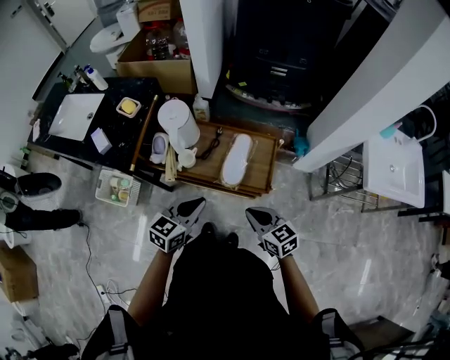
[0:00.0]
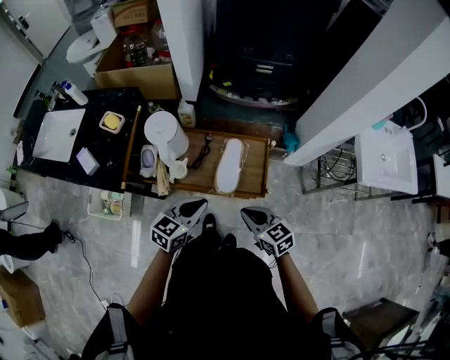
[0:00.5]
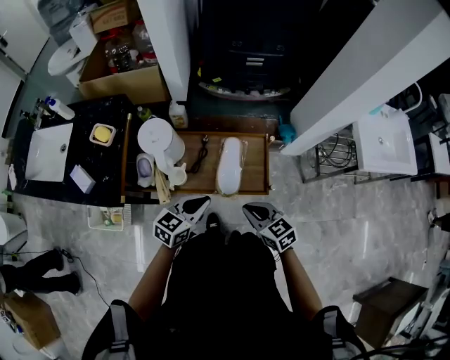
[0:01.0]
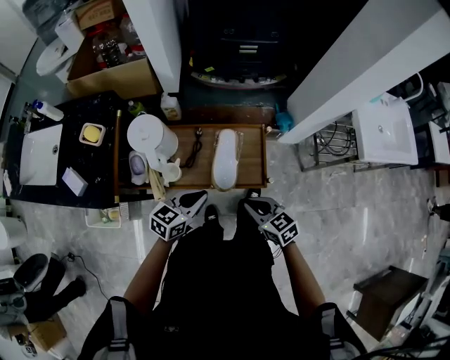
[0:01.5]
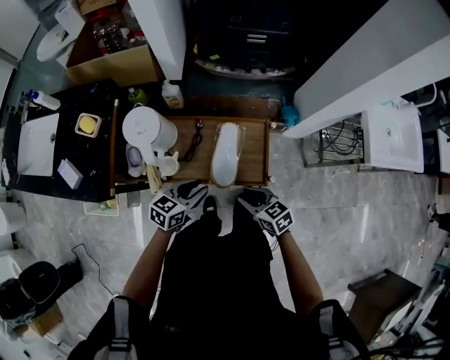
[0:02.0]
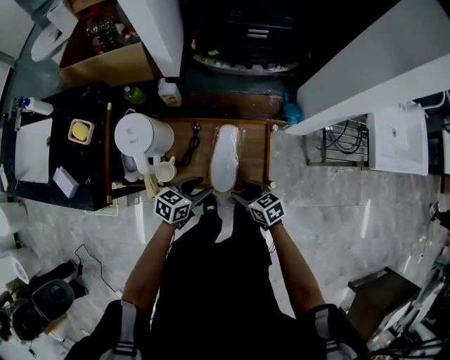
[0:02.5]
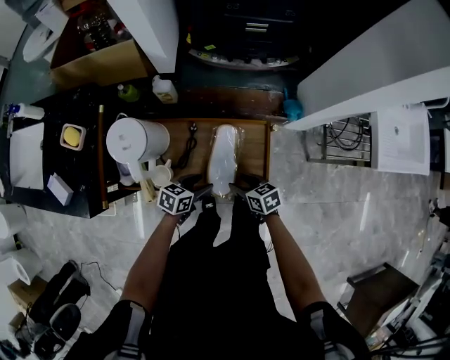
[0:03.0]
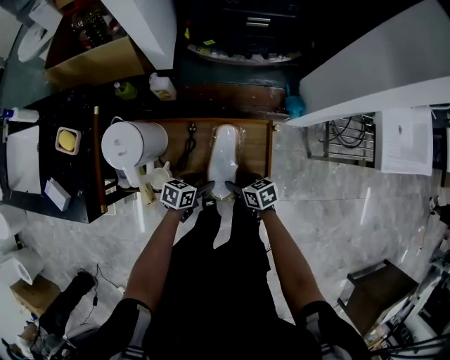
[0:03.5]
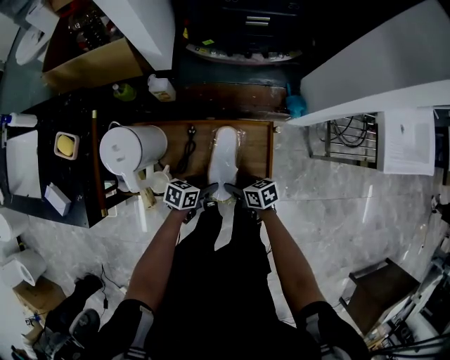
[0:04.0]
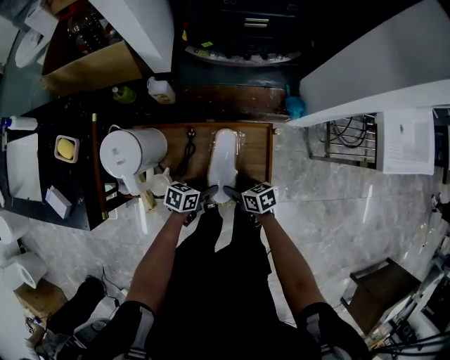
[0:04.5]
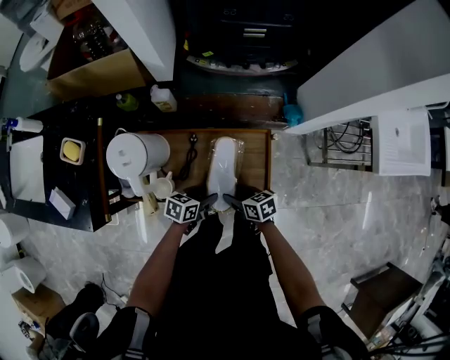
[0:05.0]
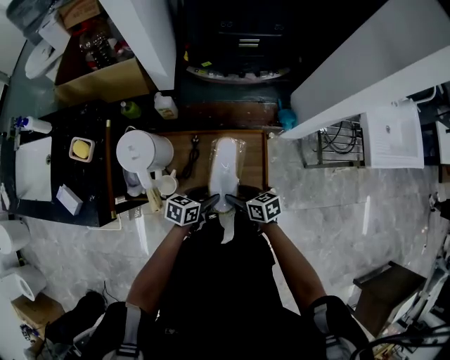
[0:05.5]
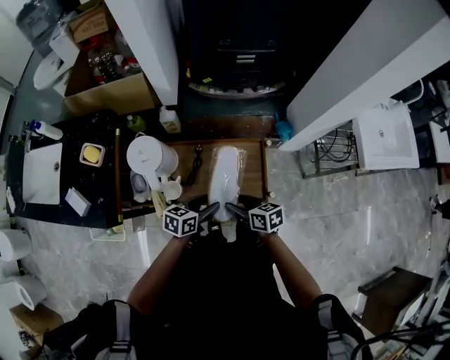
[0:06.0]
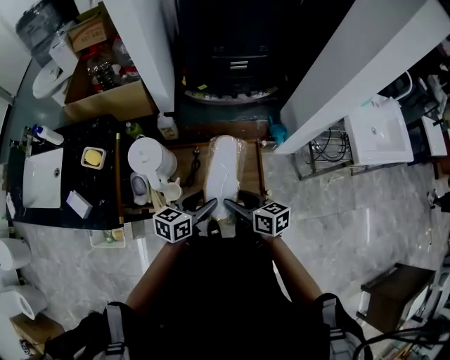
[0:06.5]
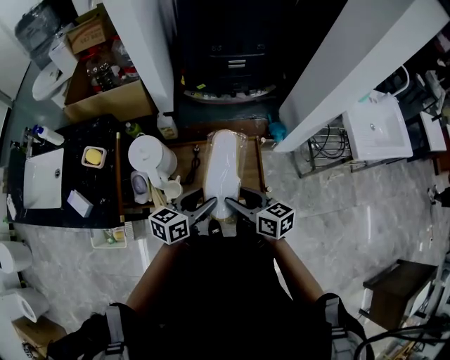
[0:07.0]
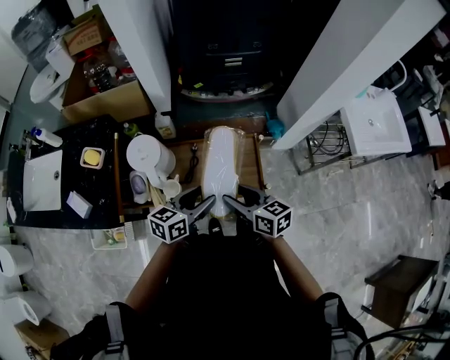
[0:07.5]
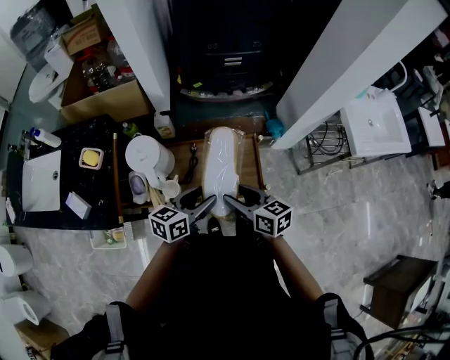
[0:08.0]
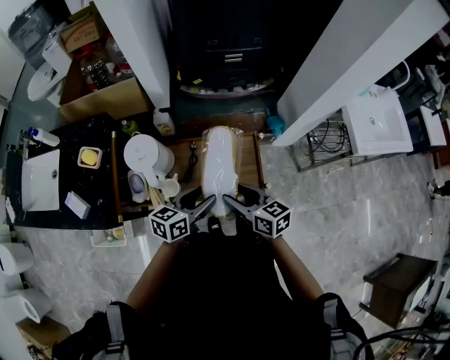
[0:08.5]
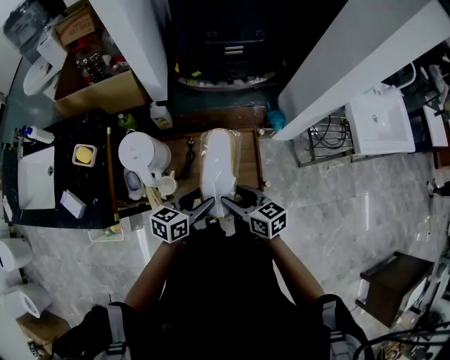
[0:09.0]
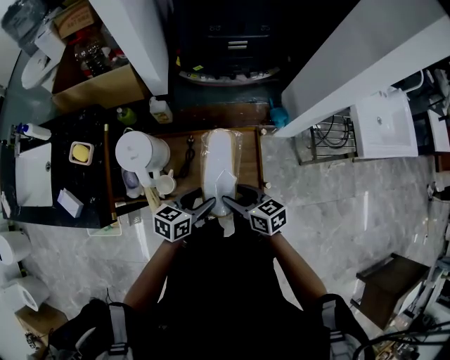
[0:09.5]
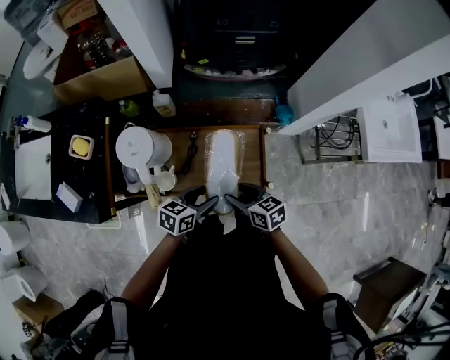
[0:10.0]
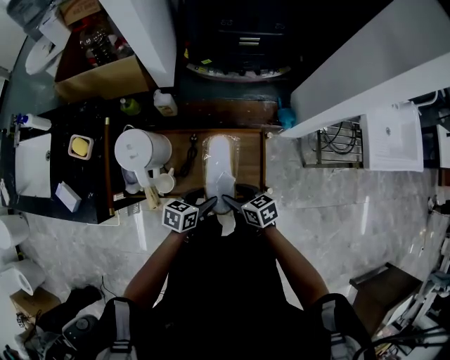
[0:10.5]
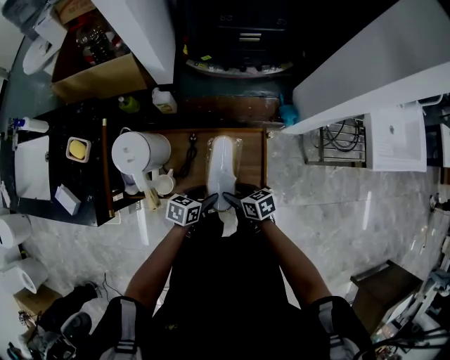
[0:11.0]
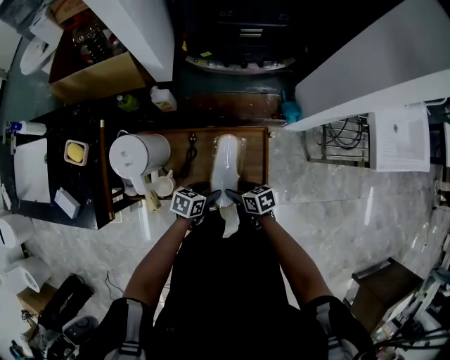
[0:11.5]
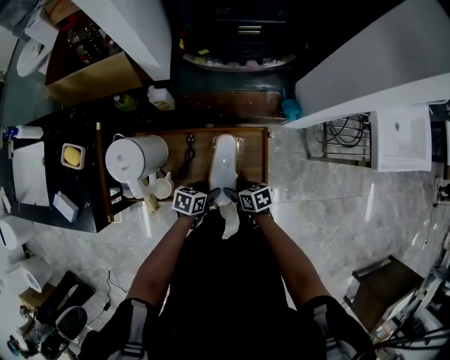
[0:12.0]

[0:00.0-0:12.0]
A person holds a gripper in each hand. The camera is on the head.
0:00.0 to 0:02.0: The grippers both shift downward and forward by roughly 15 cm. The left gripper opens its fingers, while the right gripper opens.
0:02.0 to 0:04.0: The grippers both shift downward by approximately 15 cm. The left gripper swivels some 30 degrees, and opens up, while the right gripper rotates approximately 30 degrees, and opens.
0:04.0 to 0:06.0: The two grippers go roughly 15 cm upward.
0:06.0 to 0:08.0: The grippers both shift upward by about 10 cm.
0:08.0 to 0:10.0: The two grippers go approximately 10 cm downward.
0:10.0 to 0:12.0: The two grippers go some 15 cm downward.

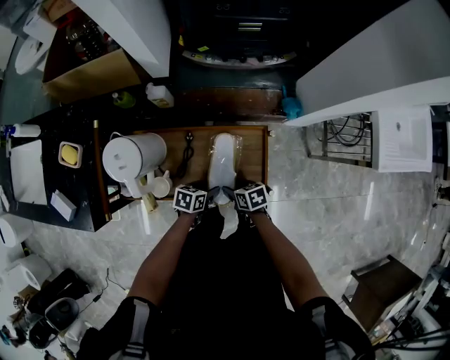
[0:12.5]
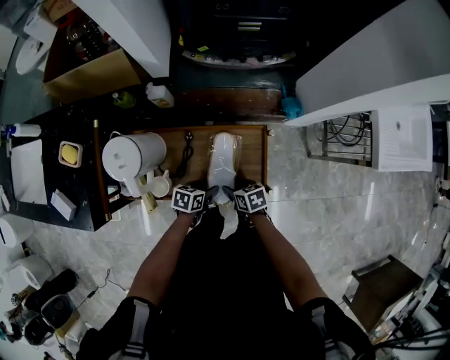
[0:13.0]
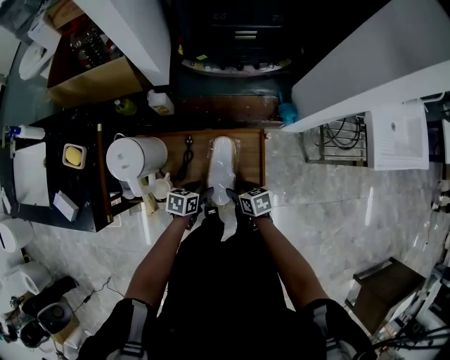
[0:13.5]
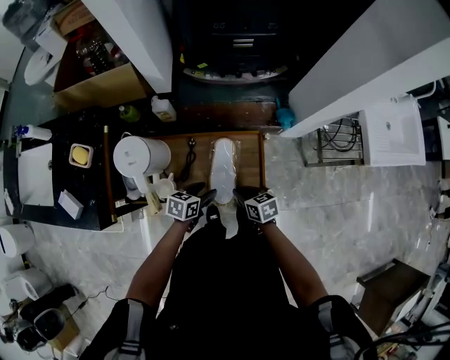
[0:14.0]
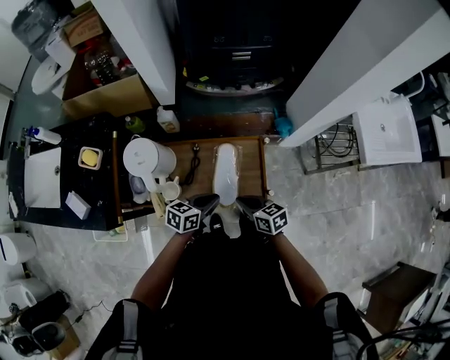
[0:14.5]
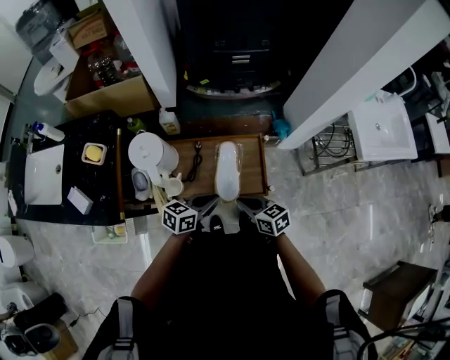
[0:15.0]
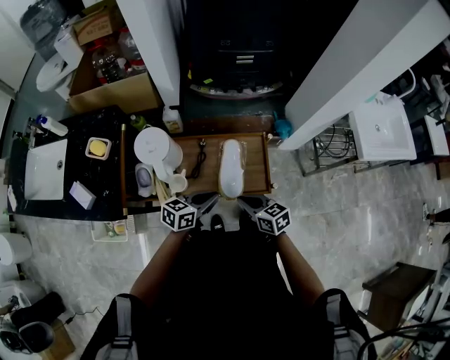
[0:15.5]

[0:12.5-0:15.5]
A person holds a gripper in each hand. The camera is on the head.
0:12.5 to 0:14.0: The grippers both shift upward by some 5 cm. The right gripper closes.
0:14.0 to 0:15.5: Both grippers travel together upward and backward, roughly 15 cm. The left gripper swivels some 20 degrees, and closes.

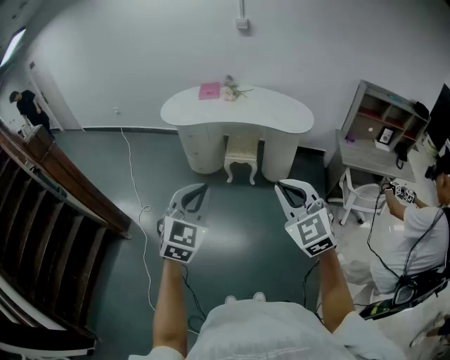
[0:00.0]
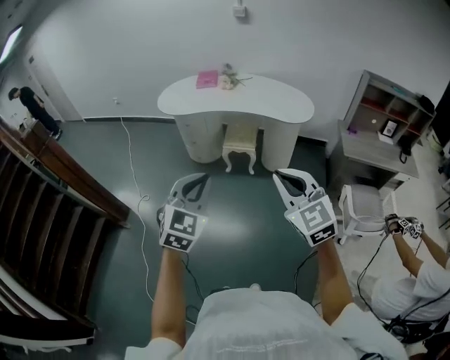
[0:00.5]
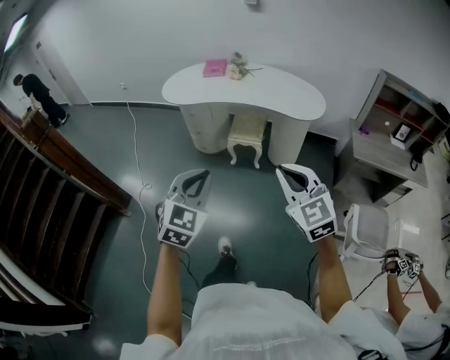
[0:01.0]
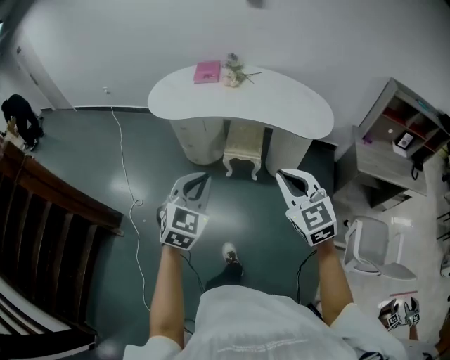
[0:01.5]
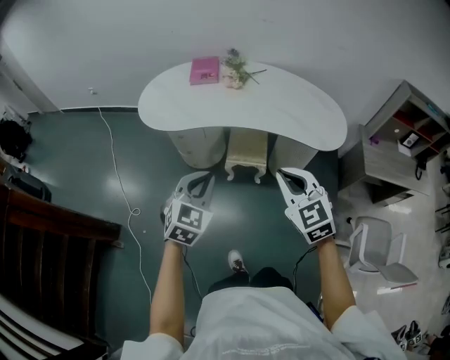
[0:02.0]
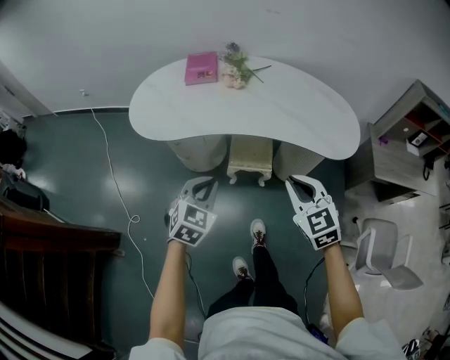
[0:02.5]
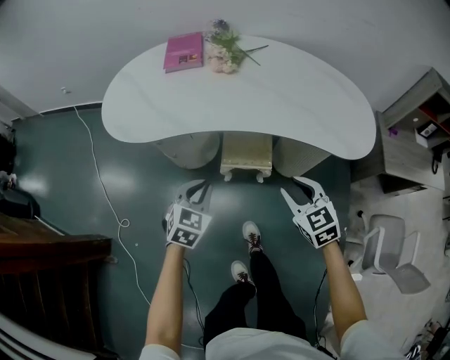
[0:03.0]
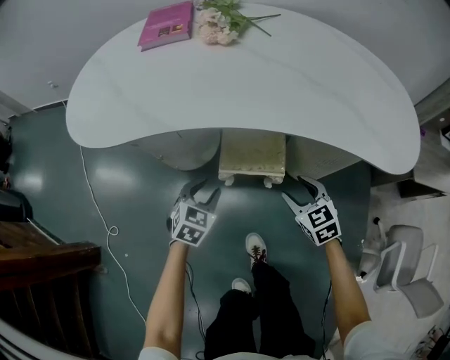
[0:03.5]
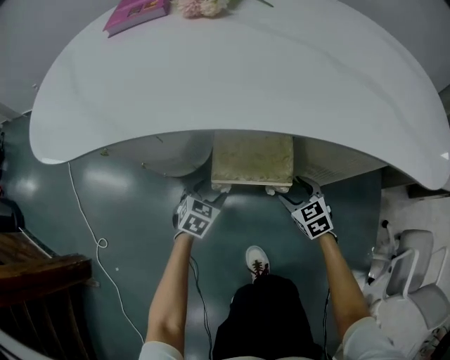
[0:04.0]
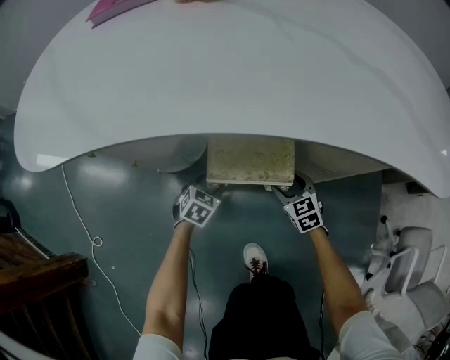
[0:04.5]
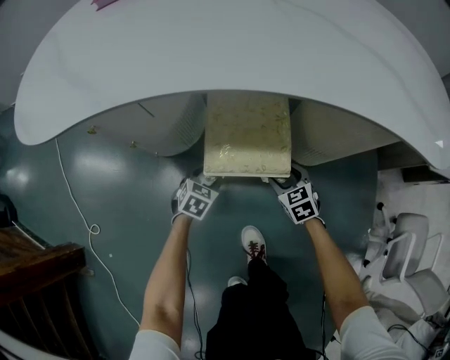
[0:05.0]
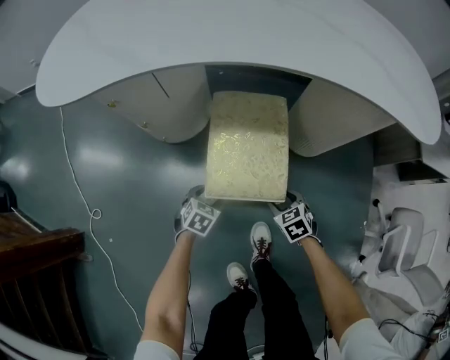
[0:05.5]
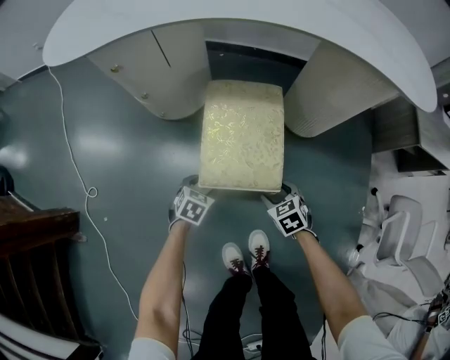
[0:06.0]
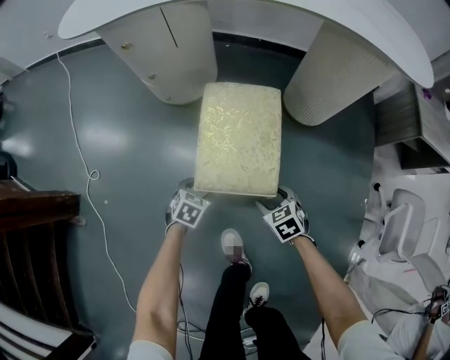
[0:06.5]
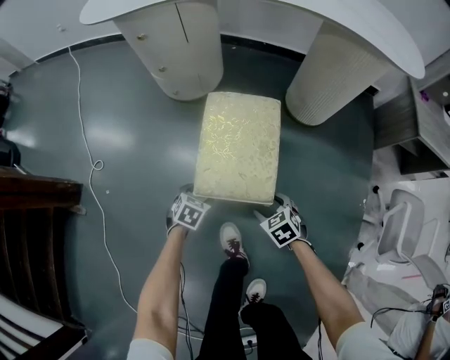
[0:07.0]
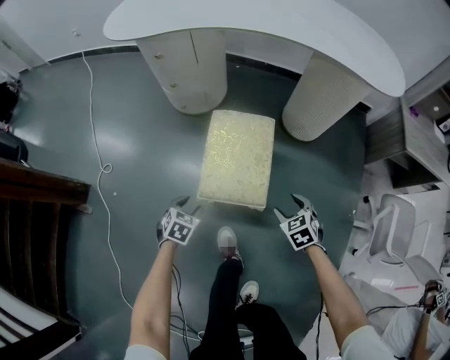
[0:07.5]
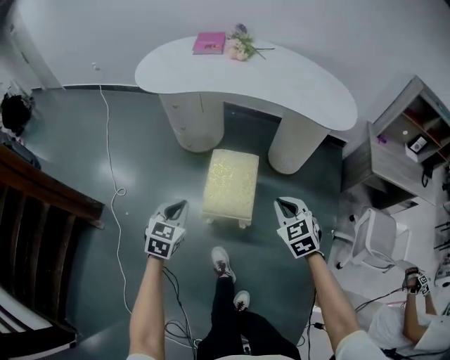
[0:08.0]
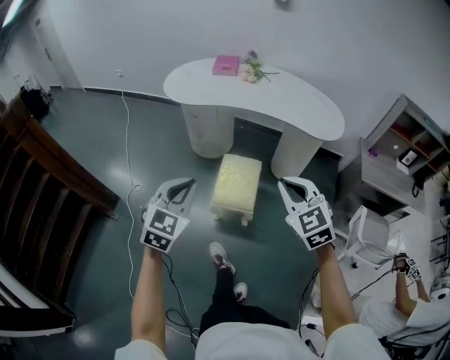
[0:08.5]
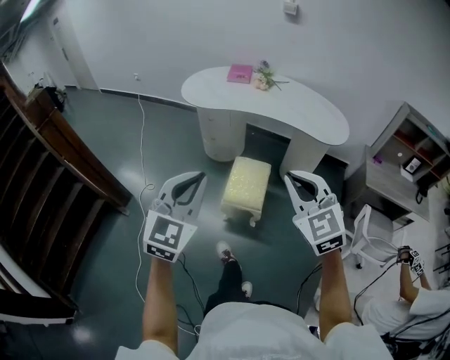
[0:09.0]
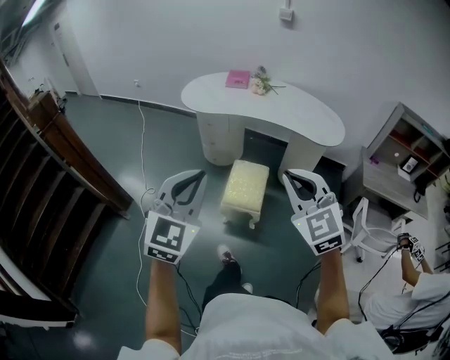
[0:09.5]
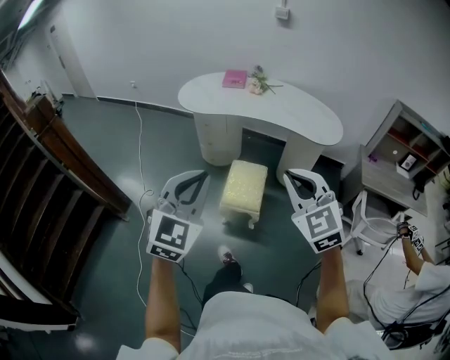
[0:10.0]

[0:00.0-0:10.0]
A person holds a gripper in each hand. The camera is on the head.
0:00.0 to 0:02.0: The pair of grippers is taken forward, about 40 cm.
0:02.0 to 0:04.0: The grippers both shift downward and forward by about 70 cm. The left gripper changes its angle by approximately 30 degrees, and opens; the right gripper turns by about 30 degrees, and opens its fingers.
0:04.0 to 0:06.0: The grippers both shift backward by some 25 cm.
0:06.0 to 0:08.0: The right gripper shifts about 40 cm upward, turns by some 30 degrees, and closes up; the left gripper shifts approximately 50 cm upward and backward, swivels roughly 30 degrees, and closes.
0:08.0 to 0:10.0: The two grippers go roughly 40 cm upward and backward. The right gripper changes its angle by about 30 degrees, while the left gripper swivels approximately 30 degrees.

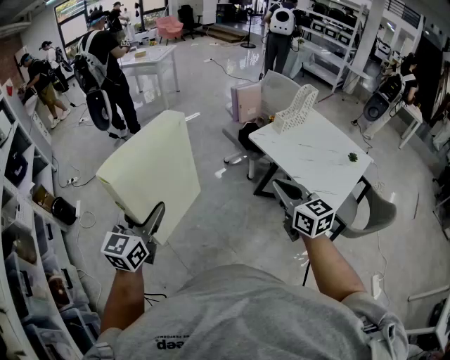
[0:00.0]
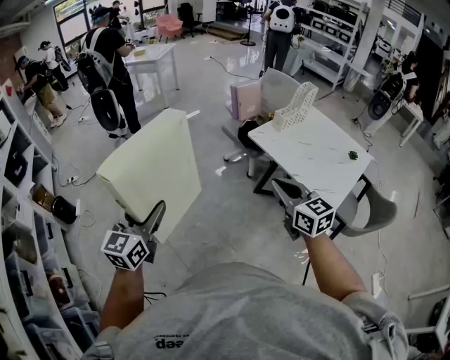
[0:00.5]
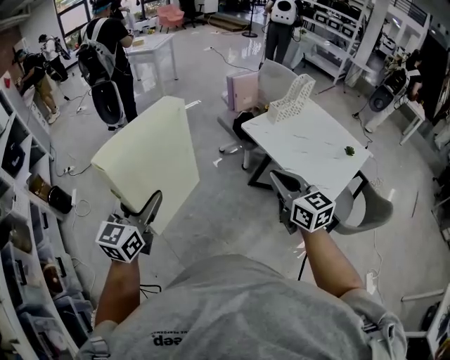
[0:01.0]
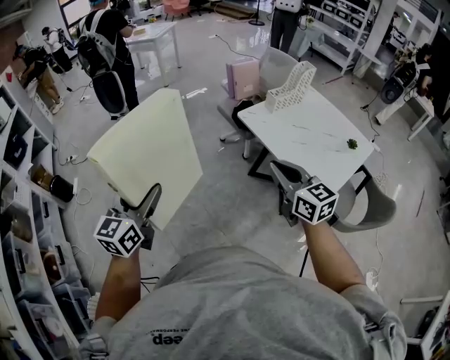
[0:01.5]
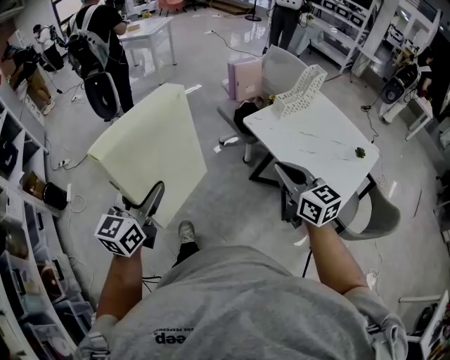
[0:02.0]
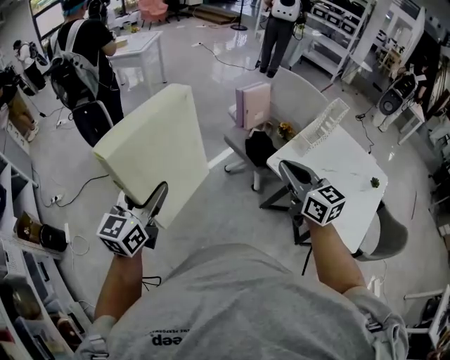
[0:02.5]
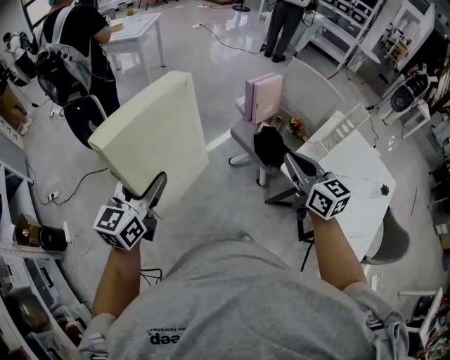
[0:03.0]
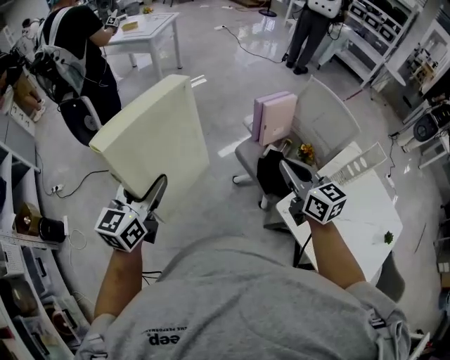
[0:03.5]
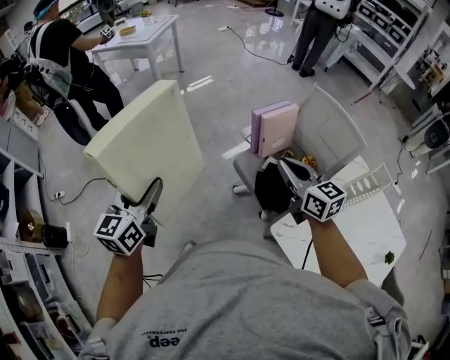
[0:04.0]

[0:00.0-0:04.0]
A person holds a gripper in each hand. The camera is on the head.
0:00.0 to 0:02.0: Both grippers move forward and to the right, about 15 cm.
0:02.0 to 0:04.0: The pair of grippers is taken forward, about 60 cm.
